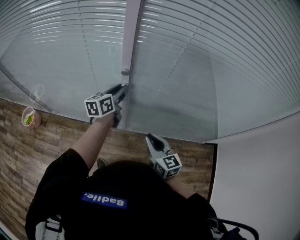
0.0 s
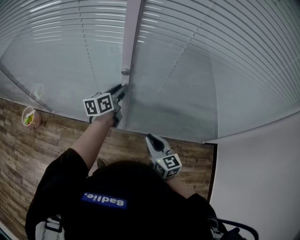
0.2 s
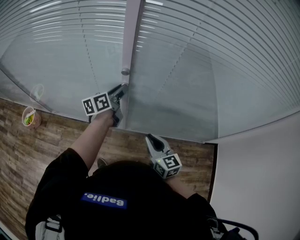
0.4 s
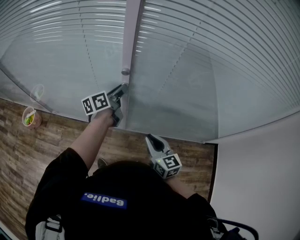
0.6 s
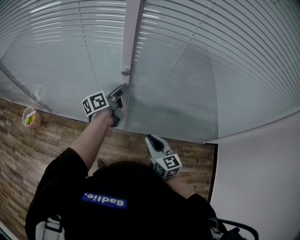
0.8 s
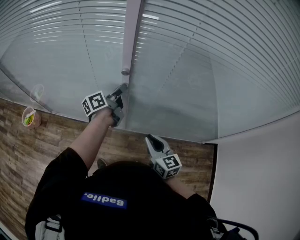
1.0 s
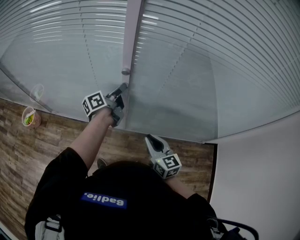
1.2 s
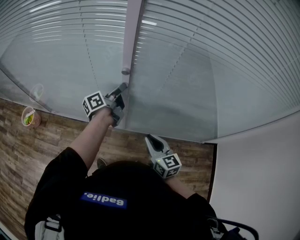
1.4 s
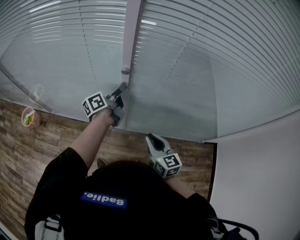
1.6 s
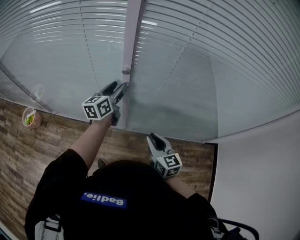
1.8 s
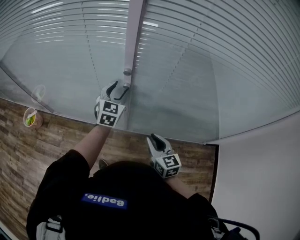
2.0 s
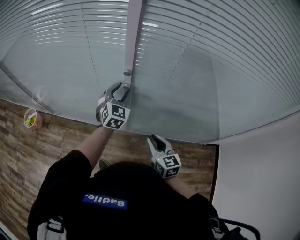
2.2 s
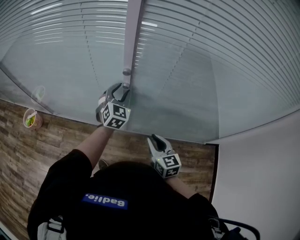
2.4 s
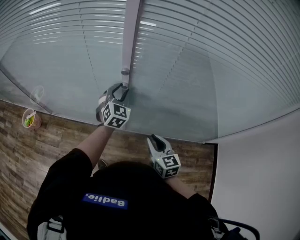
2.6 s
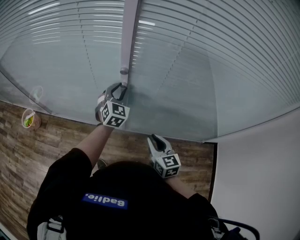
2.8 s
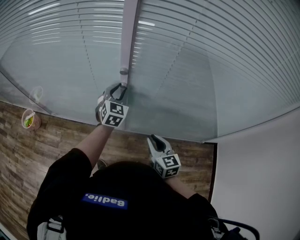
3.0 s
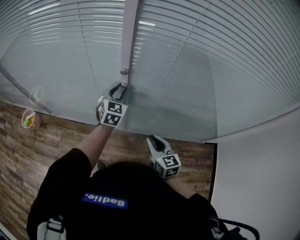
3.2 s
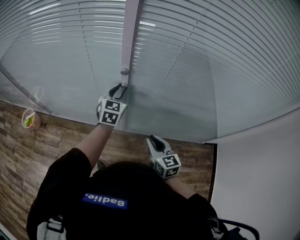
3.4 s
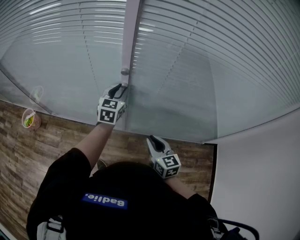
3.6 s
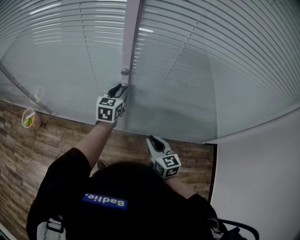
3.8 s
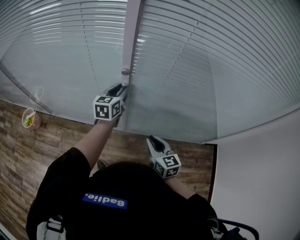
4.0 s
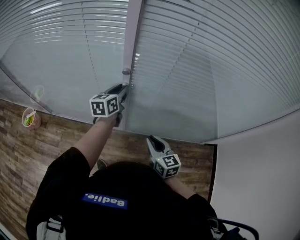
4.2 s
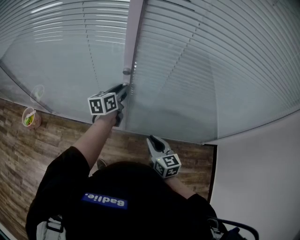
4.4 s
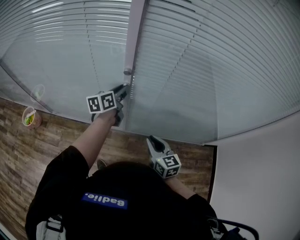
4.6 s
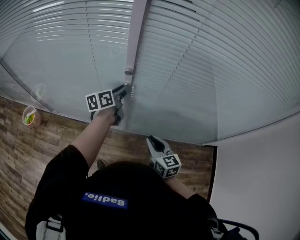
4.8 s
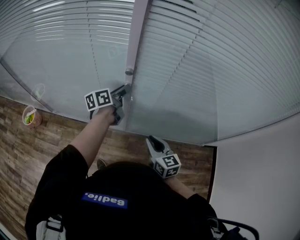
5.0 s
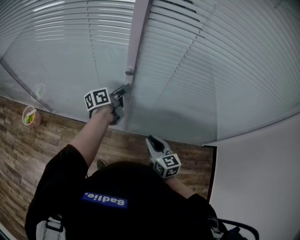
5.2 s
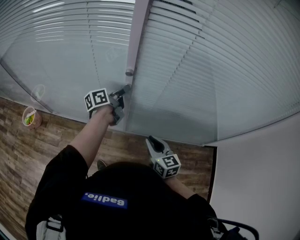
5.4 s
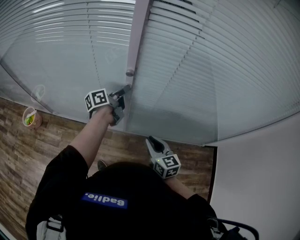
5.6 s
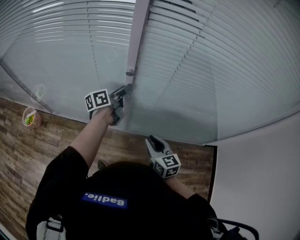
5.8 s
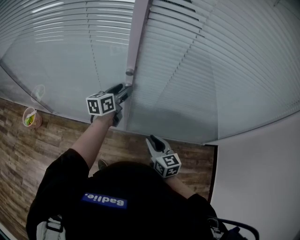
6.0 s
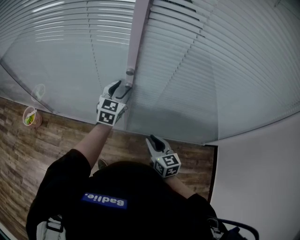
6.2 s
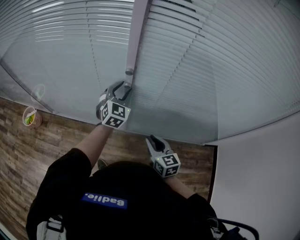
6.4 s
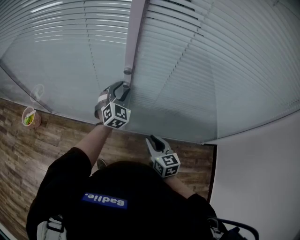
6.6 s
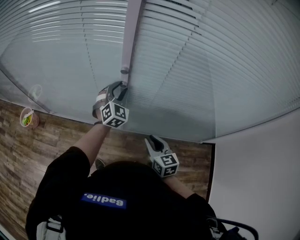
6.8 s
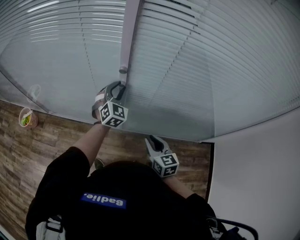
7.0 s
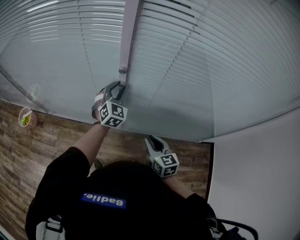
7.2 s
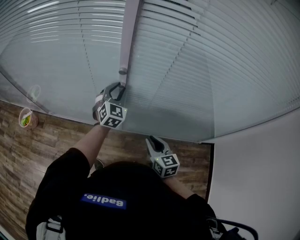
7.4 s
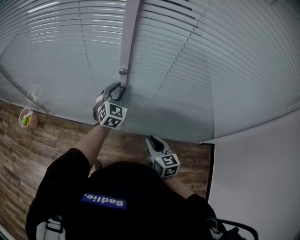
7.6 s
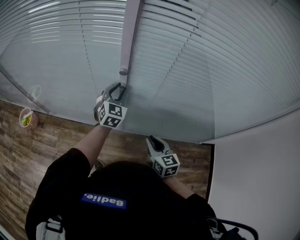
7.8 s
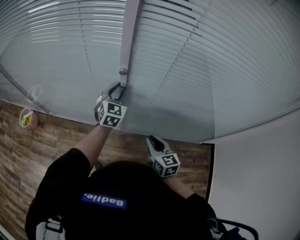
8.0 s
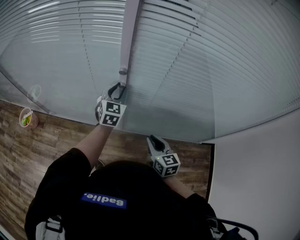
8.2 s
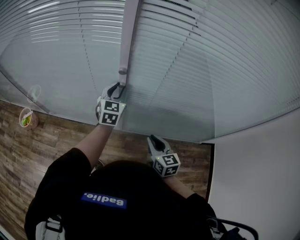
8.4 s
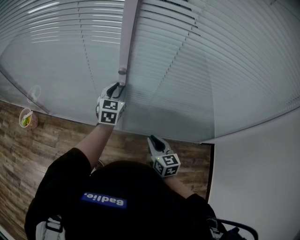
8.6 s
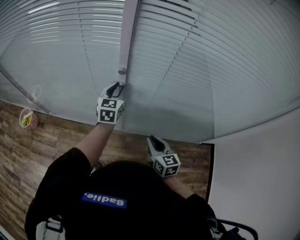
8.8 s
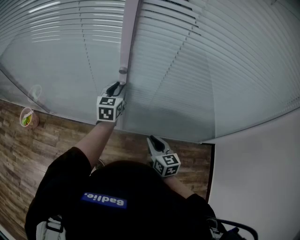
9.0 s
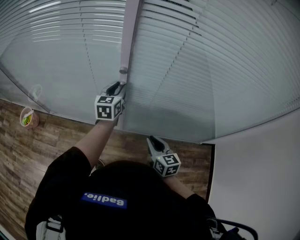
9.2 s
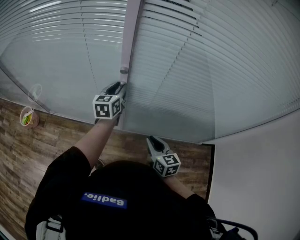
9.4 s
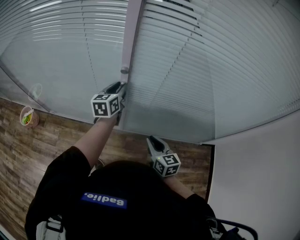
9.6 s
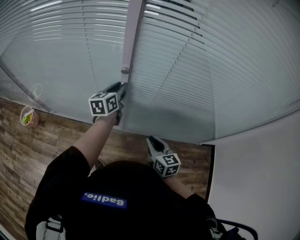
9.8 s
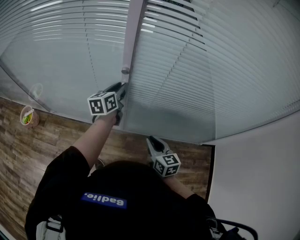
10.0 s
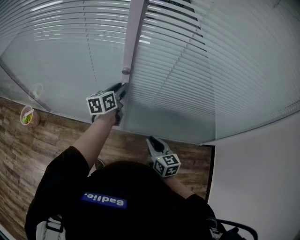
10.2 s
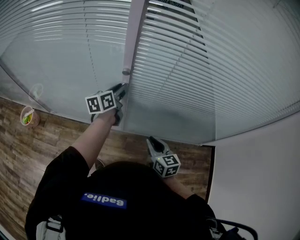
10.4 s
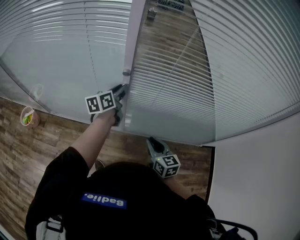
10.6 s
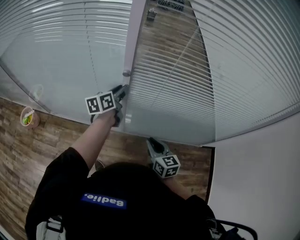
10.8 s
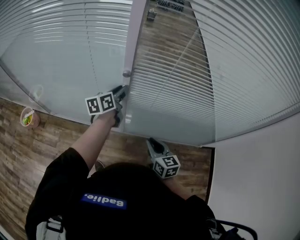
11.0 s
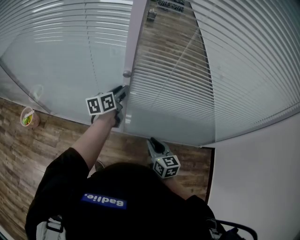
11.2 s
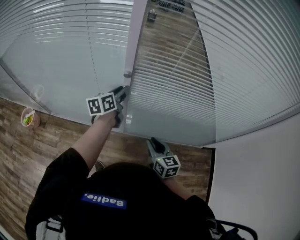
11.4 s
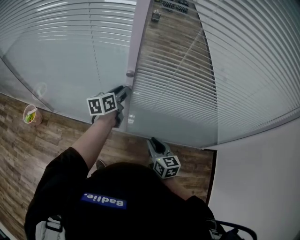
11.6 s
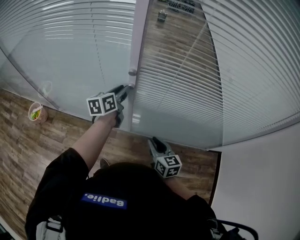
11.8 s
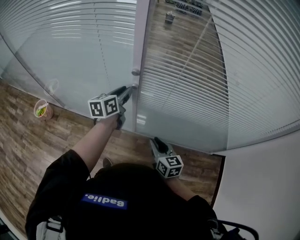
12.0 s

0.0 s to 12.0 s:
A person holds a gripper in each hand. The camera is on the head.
0.0 to 1.6 s: The left gripper swivels about 30 degrees.
1.6 to 3.0 s: The left gripper rotates around the line of its fingers by roughly 80 degrees, clockwise from behind, and opens, then closes again.
3.0 to 4.4 s: The left gripper rolls counterclockwise, seen from behind, by approximately 50 degrees.
4.4 to 6.0 s: The left gripper opens its fingers.
6.0 to 7.6 s: The left gripper twists roughly 50 degrees clockwise, seen from behind, and closes.
7.6 to 9.0 s: The left gripper rotates approximately 30 degrees.
9.0 to 10.4 s: The left gripper rotates some 30 degrees.
10.4 to 12.0 s: The grippers move only a little.

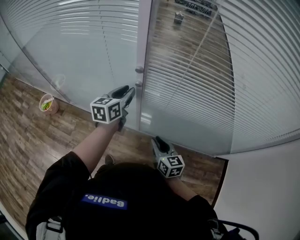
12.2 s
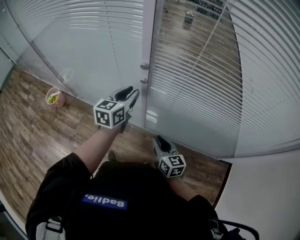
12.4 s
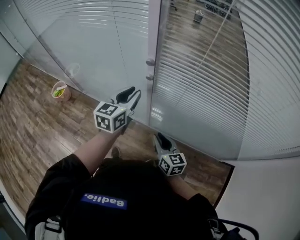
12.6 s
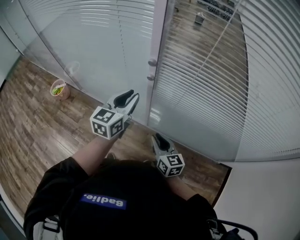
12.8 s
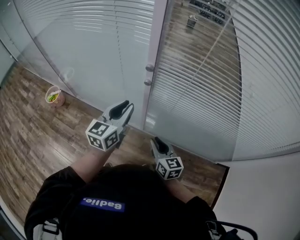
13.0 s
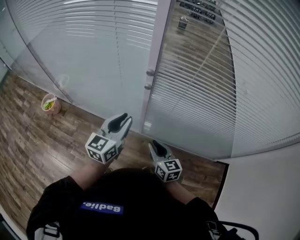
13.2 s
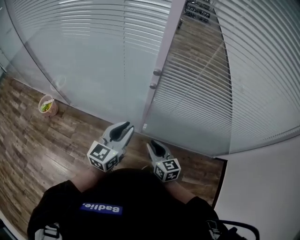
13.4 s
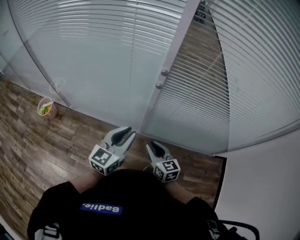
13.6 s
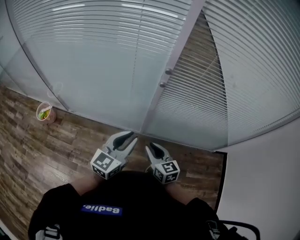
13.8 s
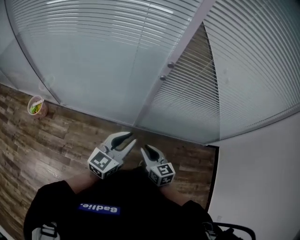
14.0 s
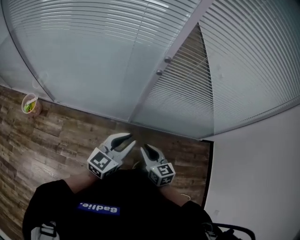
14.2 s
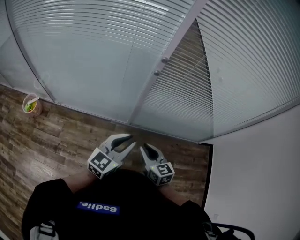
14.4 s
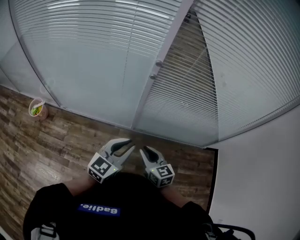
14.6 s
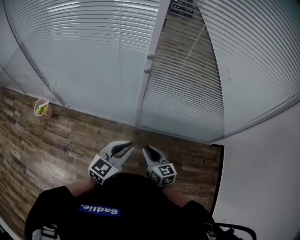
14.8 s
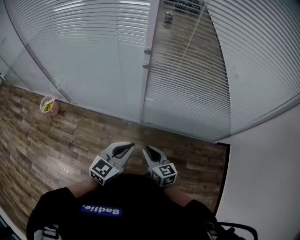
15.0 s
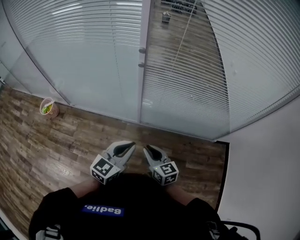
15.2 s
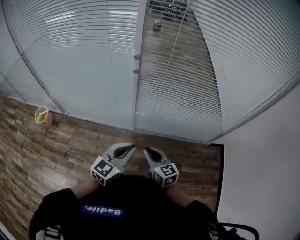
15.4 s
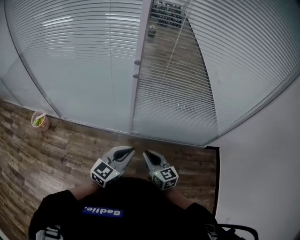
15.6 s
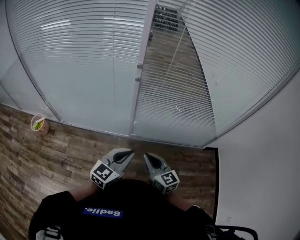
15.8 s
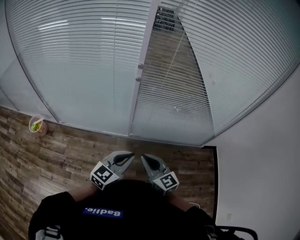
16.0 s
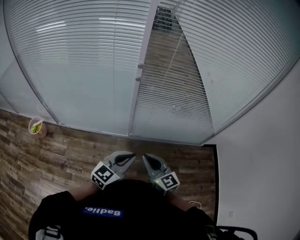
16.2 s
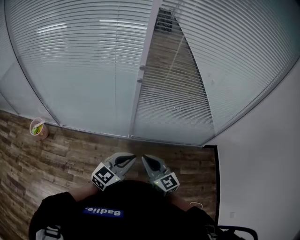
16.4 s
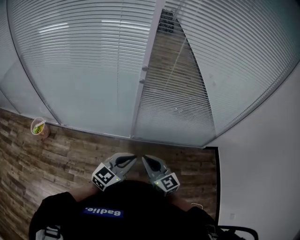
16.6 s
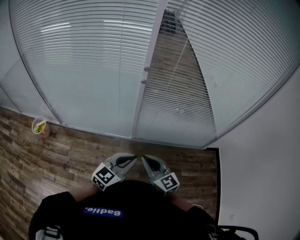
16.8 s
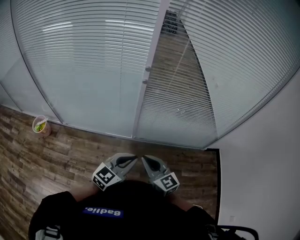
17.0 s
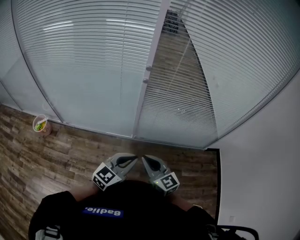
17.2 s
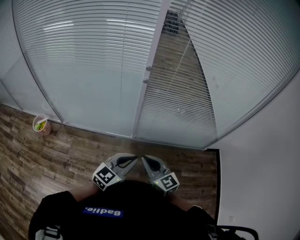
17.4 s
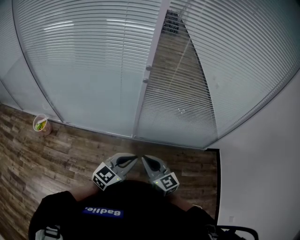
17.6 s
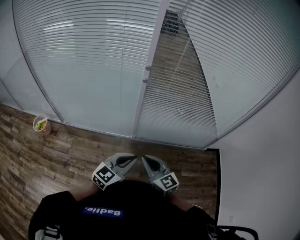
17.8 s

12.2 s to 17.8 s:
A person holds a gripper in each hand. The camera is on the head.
12.2 to 13.6 s: The right gripper moves to the left, roughly 10 cm. The left gripper travels backward by approximately 20 cm.
13.6 to 15.0 s: The left gripper heads backward and to the right, covering roughly 15 cm. Meanwhile the right gripper shifts approximately 10 cm backward.
15.0 to 16.4 s: The left gripper ends up approximately 5 cm from where it was. Meanwhile the right gripper goes some 10 cm upward, and rotates about 20 degrees.
16.4 to 17.8 s: There are only small adjustments of the grippers.

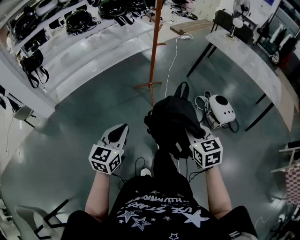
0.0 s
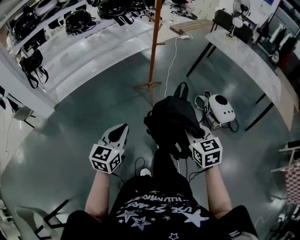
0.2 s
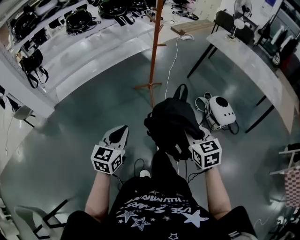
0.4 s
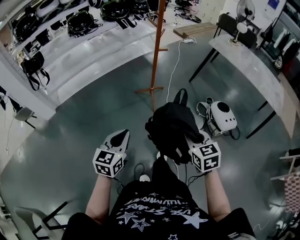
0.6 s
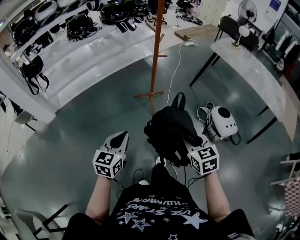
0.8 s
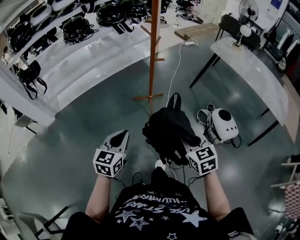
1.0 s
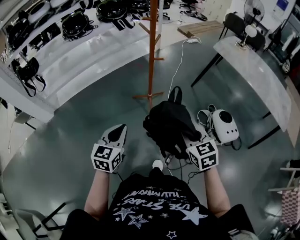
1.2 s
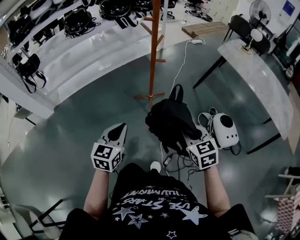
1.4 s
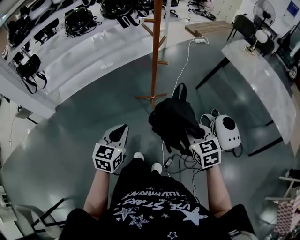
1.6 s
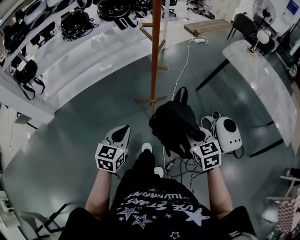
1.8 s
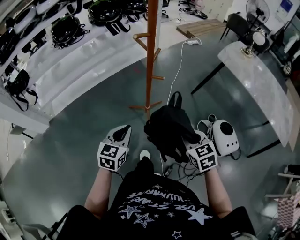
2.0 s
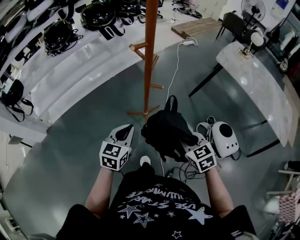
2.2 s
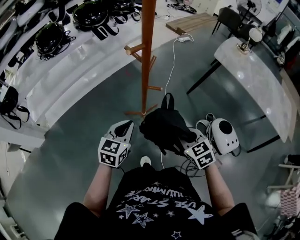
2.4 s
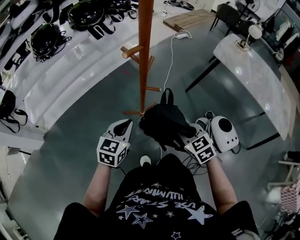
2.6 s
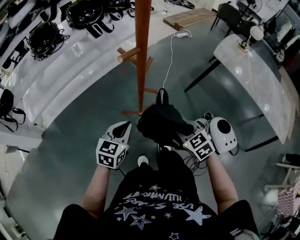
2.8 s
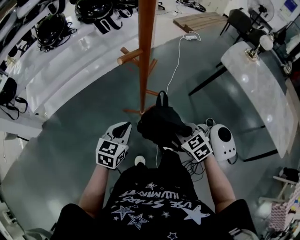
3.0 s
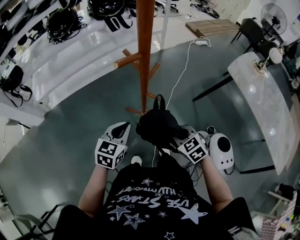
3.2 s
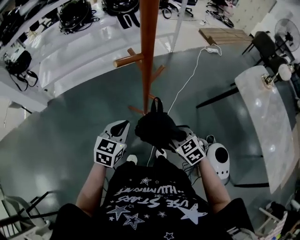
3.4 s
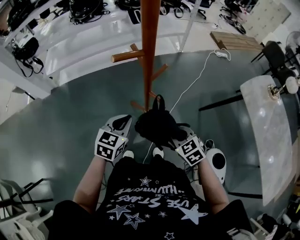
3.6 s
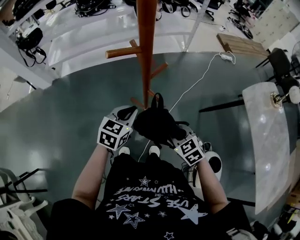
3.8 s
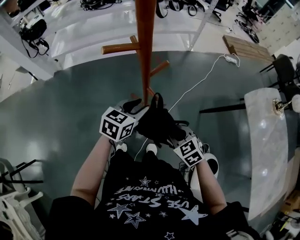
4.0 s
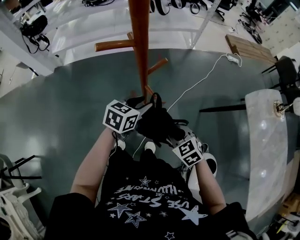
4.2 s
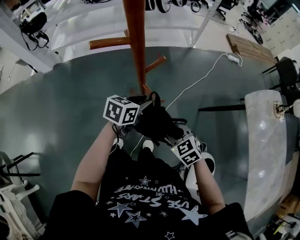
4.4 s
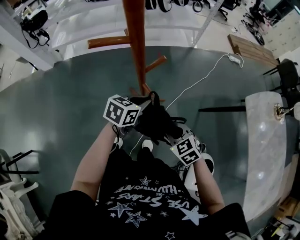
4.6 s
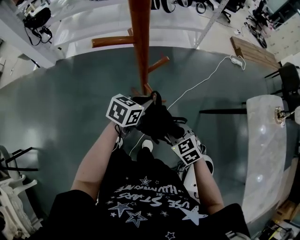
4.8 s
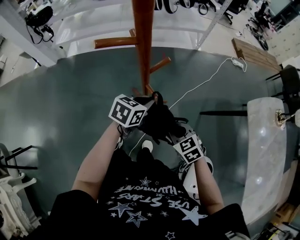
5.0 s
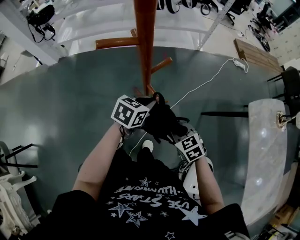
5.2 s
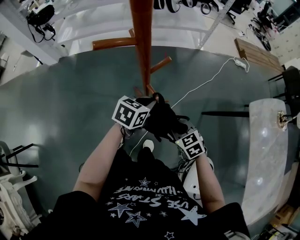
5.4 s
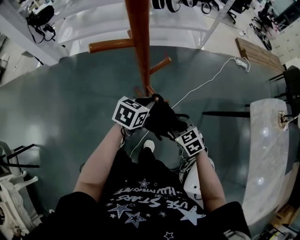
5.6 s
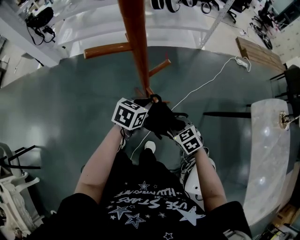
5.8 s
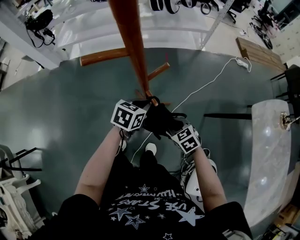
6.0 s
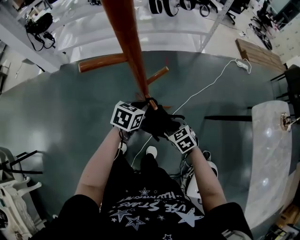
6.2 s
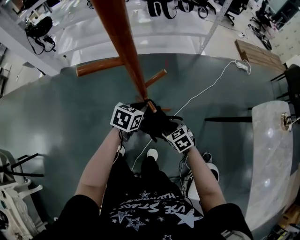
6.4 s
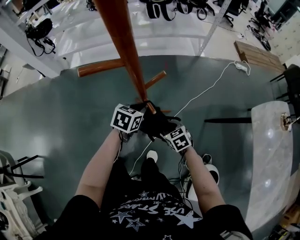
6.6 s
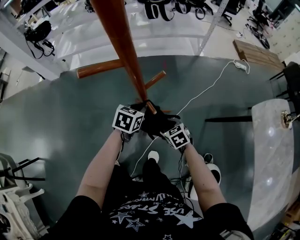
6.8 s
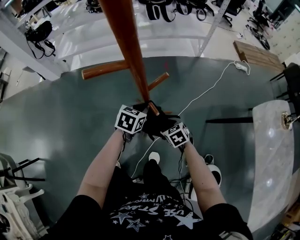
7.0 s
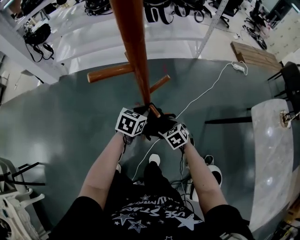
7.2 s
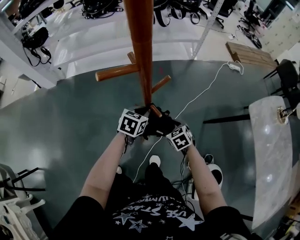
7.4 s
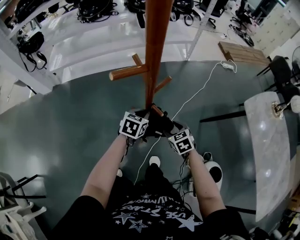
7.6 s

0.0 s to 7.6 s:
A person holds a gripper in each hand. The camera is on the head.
0.0 to 1.6 s: Both grippers travel together forward, roughly 30 cm.
1.6 to 3.0 s: The grippers both shift forward by roughly 25 cm.
3.0 to 4.6 s: The left gripper heads to the right and forward, covering approximately 20 cm, turns by some 30 degrees, and opens, then closes once more. The right gripper shifts about 10 cm to the right and forward, and changes its angle by about 30 degrees.
4.6 to 6.0 s: The right gripper moves downward and forward, about 10 cm.
6.0 to 7.6 s: The right gripper opens up.
